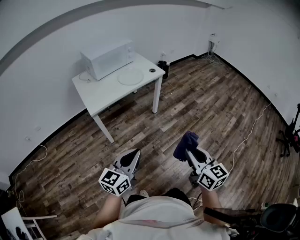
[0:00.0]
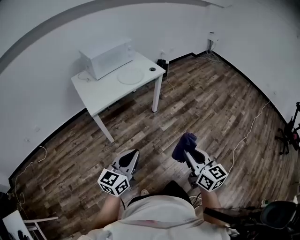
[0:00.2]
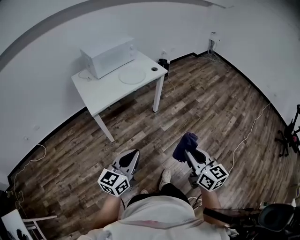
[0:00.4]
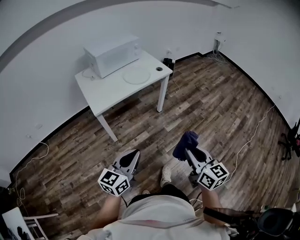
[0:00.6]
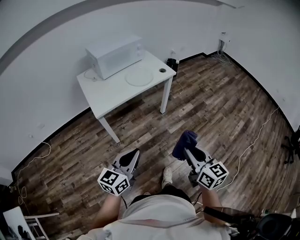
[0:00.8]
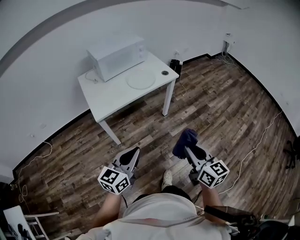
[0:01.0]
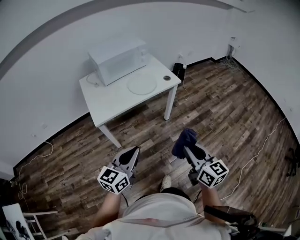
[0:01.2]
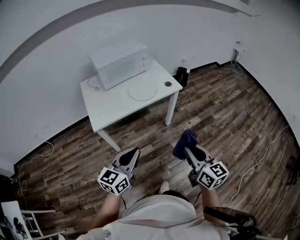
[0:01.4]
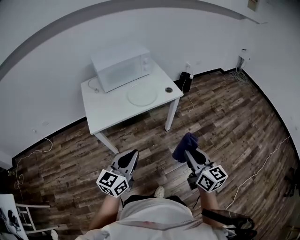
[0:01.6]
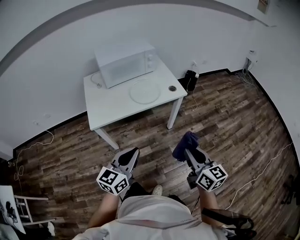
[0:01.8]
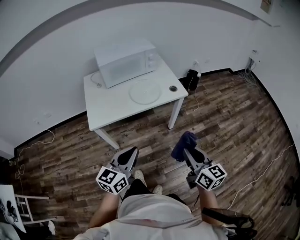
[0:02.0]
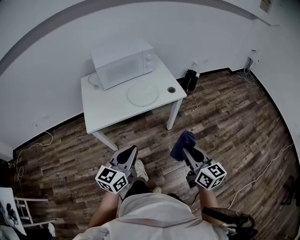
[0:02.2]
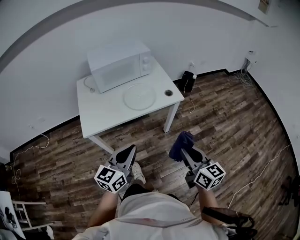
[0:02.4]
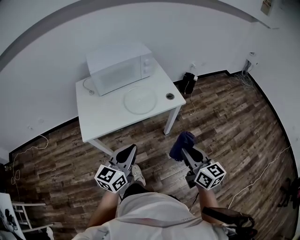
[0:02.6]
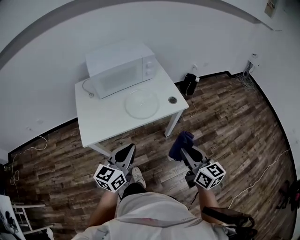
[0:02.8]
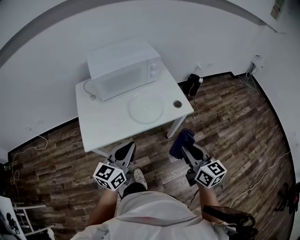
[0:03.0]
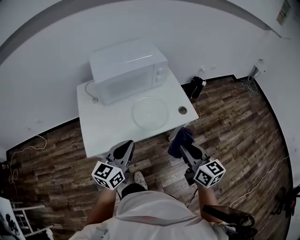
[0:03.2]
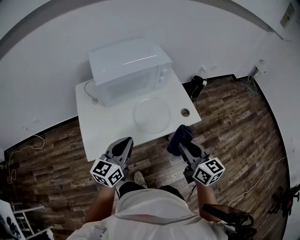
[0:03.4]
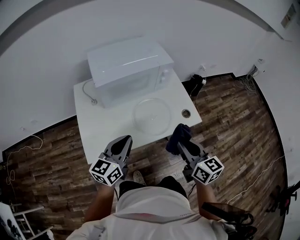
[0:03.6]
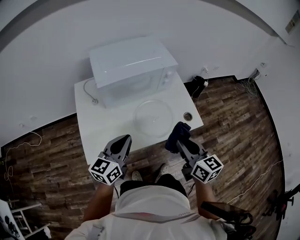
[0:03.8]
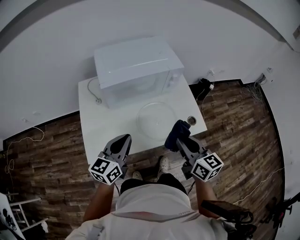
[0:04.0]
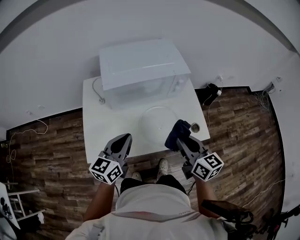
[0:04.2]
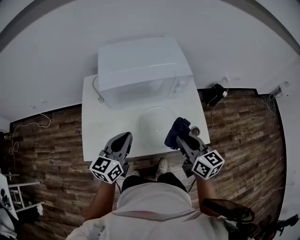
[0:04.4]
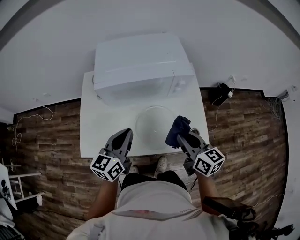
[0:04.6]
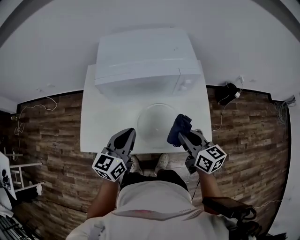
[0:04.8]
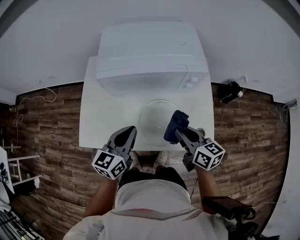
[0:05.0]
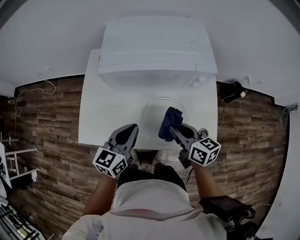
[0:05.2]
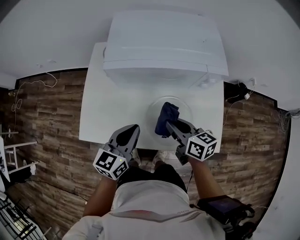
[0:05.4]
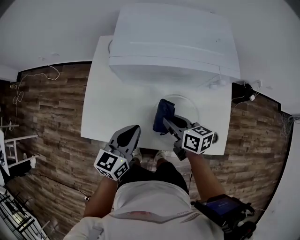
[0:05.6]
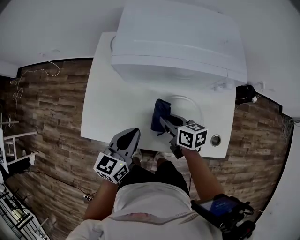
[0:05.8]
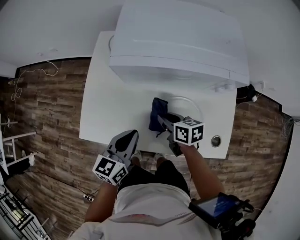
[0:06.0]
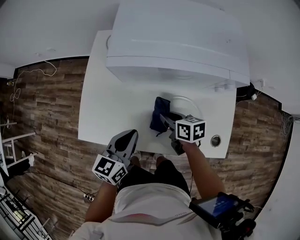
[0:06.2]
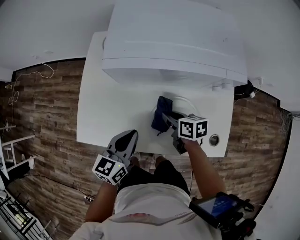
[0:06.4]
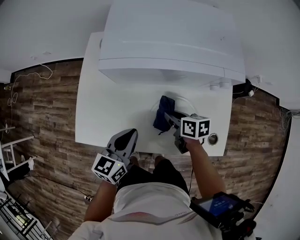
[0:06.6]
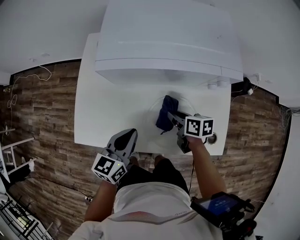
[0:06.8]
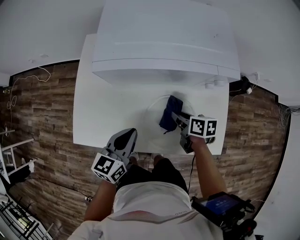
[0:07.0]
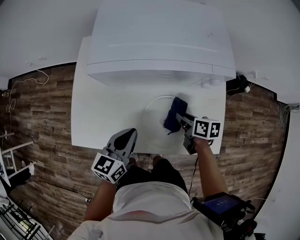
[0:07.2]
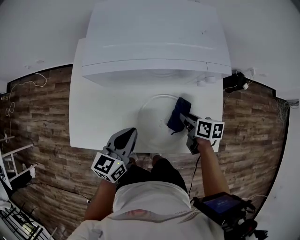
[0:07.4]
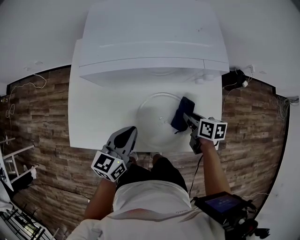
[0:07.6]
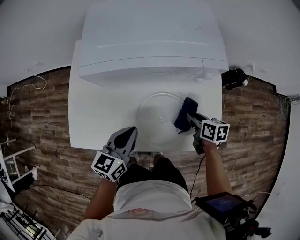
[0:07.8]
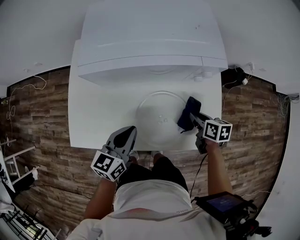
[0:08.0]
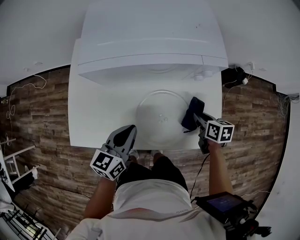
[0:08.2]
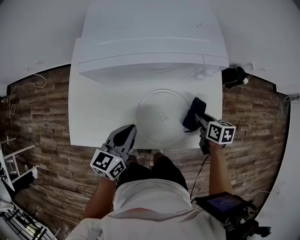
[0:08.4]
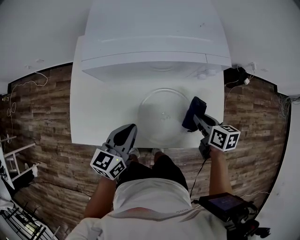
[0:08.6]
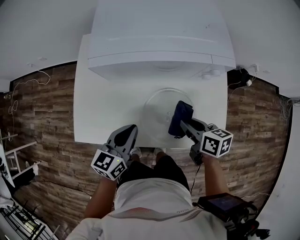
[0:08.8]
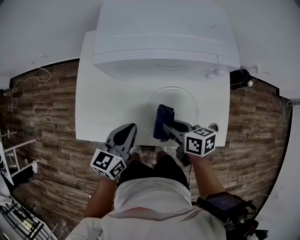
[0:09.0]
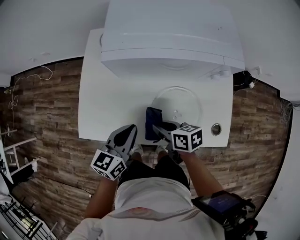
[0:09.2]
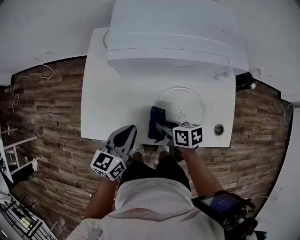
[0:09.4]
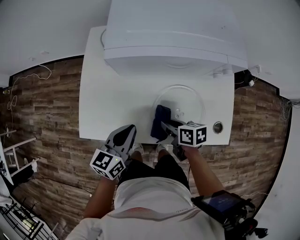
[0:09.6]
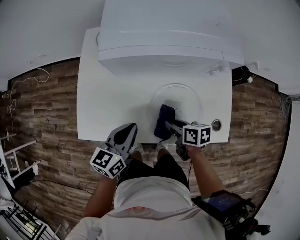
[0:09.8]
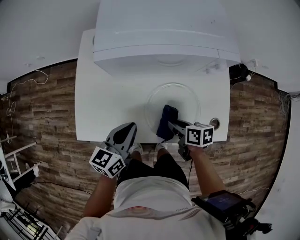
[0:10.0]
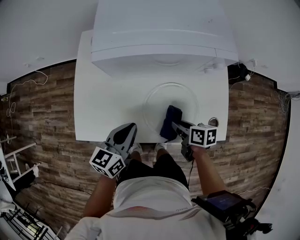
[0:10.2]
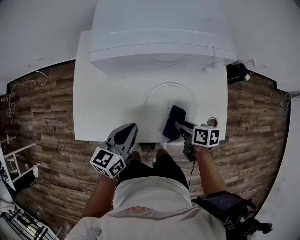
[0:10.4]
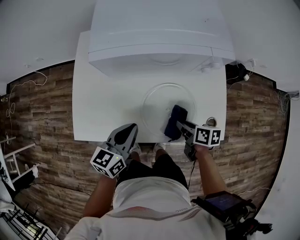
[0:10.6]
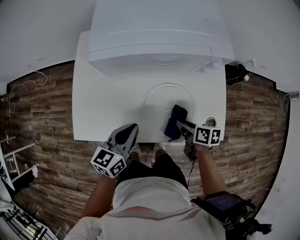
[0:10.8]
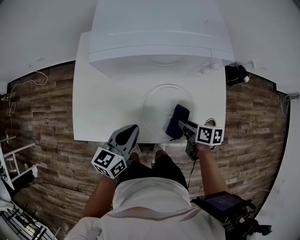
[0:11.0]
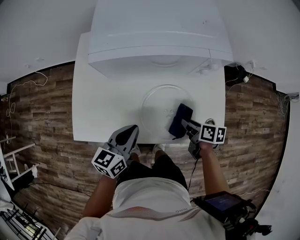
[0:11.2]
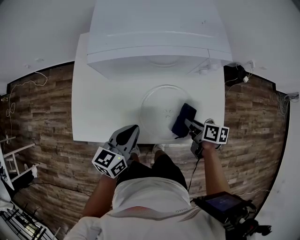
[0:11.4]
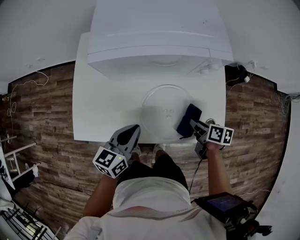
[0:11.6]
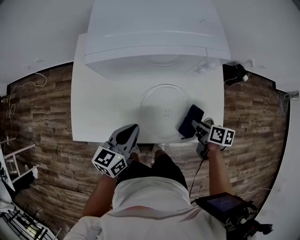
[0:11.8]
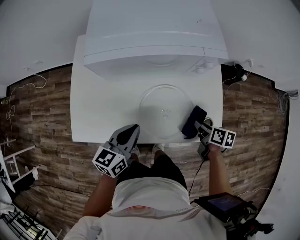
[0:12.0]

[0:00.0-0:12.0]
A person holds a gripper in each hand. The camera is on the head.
0.0 to 1.6 s: Both grippers travel together forward, approximately 25 cm.
1.6 to 3.0 s: The grippers both shift forward by about 25 cm.
3.0 to 4.4 s: The grippers both shift forward by about 25 cm.
4.4 to 6.0 s: The right gripper travels downward, forward and to the left by some 30 cm, and swivels roughly 40 degrees. Meanwhile the left gripper moves downward, roughly 10 cm.
6.0 to 7.6 s: The left gripper heads to the right, covering roughly 5 cm; the right gripper moves to the right, approximately 20 cm, and rotates about 20 degrees.
7.6 to 9.0 s: The right gripper moves to the left and upward, some 15 cm.
9.0 to 10.4 s: The right gripper heads downward and to the right, covering about 10 cm.
10.4 to 12.0 s: The right gripper heads to the right, covering about 10 cm.

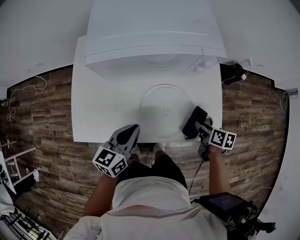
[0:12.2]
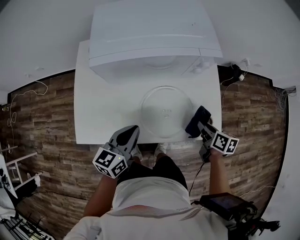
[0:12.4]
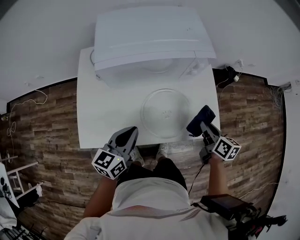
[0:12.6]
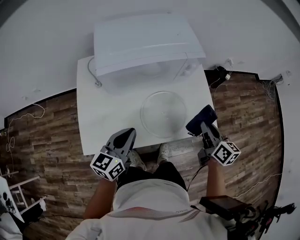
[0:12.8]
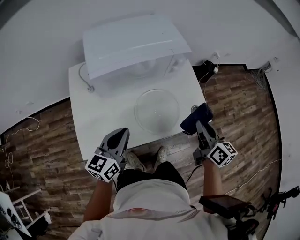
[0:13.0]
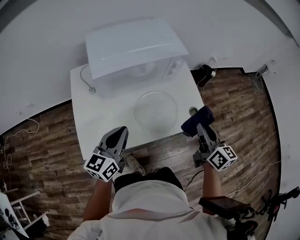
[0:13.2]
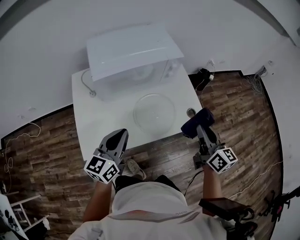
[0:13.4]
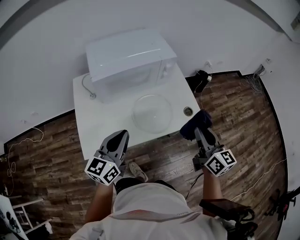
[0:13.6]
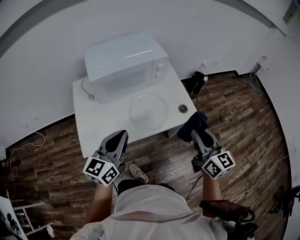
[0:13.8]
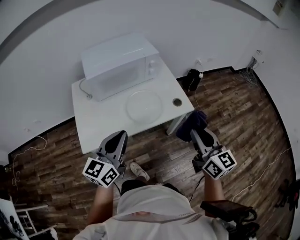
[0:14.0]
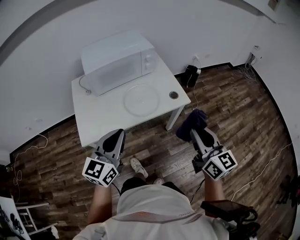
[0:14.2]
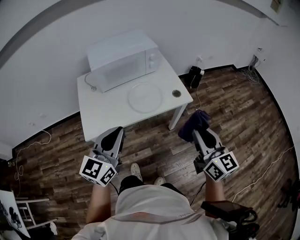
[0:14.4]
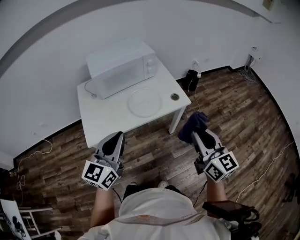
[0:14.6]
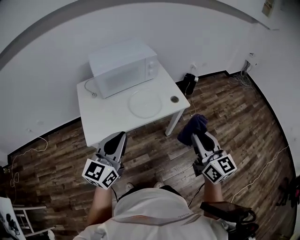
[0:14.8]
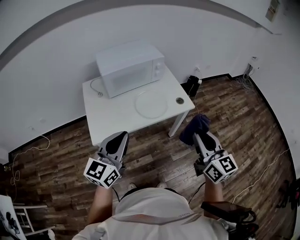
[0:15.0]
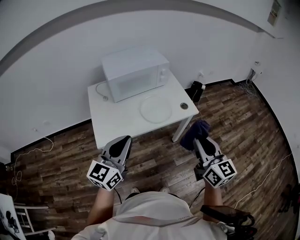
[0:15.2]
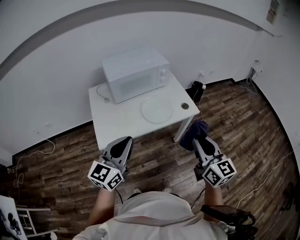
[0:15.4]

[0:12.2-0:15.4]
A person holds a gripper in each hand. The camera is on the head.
12.2 to 13.8 s: The left gripper travels upward and backward by about 20 cm, and changes its angle by about 30 degrees. Meanwhile the right gripper heads upward and backward, covering some 35 cm, and tips its fingers upward by some 40 degrees.
13.8 to 15.4 s: The left gripper heads backward and upward, covering roughly 20 cm. Meanwhile the right gripper is displaced backward by roughly 20 cm.

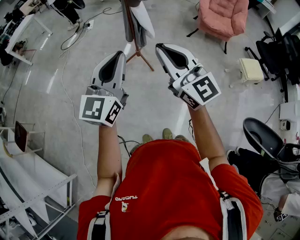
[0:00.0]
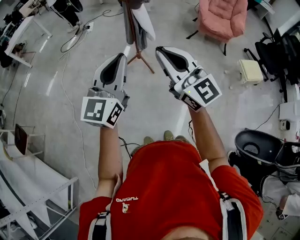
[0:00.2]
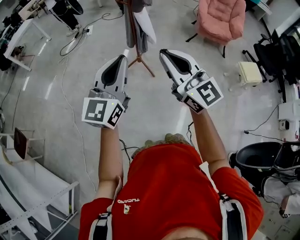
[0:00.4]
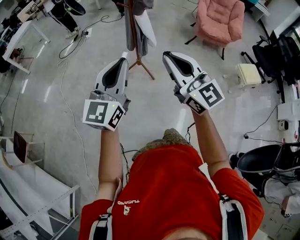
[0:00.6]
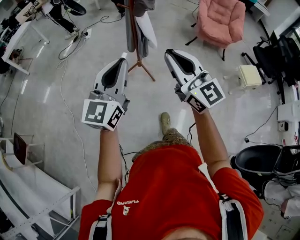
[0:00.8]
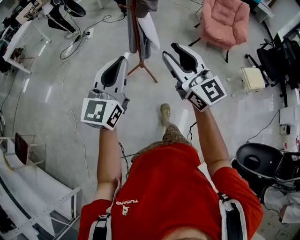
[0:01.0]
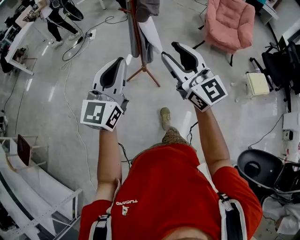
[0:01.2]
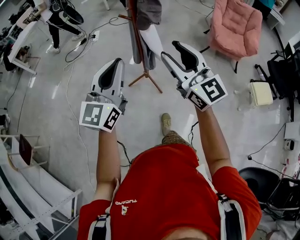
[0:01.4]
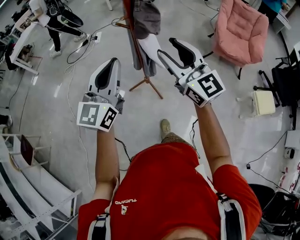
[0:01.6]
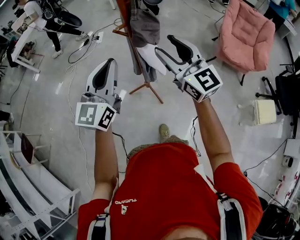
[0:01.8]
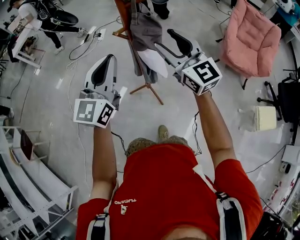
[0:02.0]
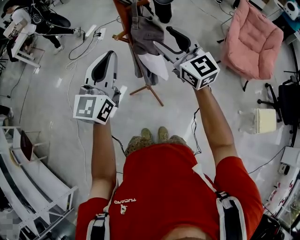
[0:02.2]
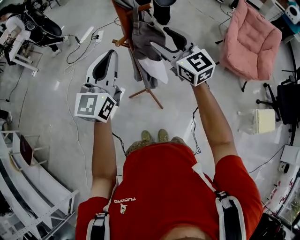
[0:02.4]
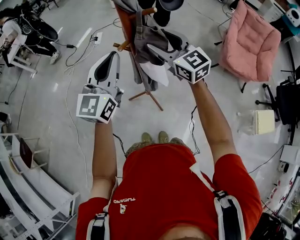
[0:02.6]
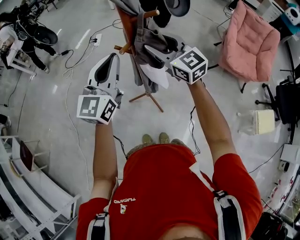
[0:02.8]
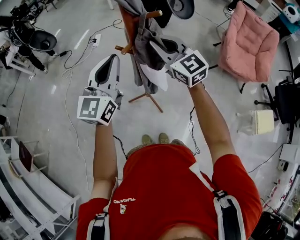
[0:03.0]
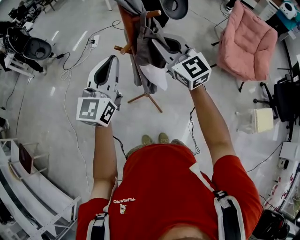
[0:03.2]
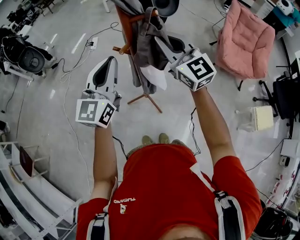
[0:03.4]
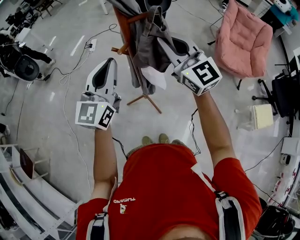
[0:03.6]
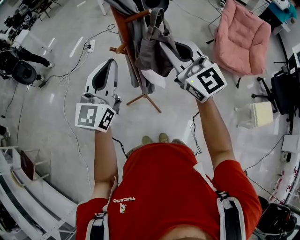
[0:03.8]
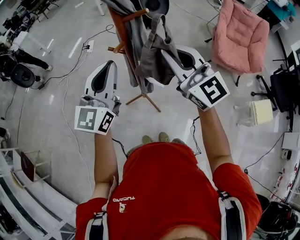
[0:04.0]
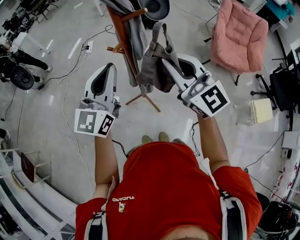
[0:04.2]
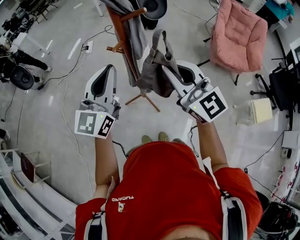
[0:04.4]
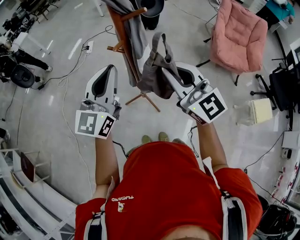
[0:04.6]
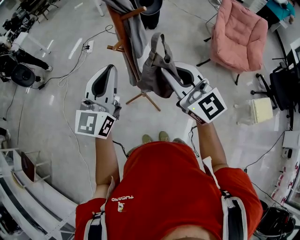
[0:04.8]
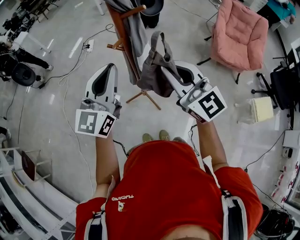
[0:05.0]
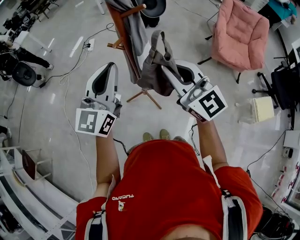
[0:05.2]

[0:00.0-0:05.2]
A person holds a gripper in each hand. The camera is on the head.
0.0 to 1.8 s: Both grippers travel together forward, approximately 40 cm. The right gripper opens up.
1.8 to 3.4 s: Both grippers move forward, approximately 15 cm. The right gripper closes up.
3.4 to 5.2 s: The left gripper is displaced backward by some 5 cm. Meanwhile the right gripper goes some 15 cm backward.

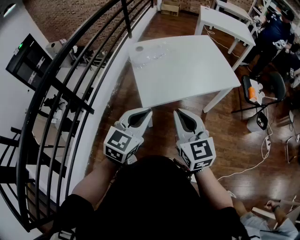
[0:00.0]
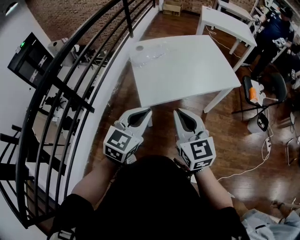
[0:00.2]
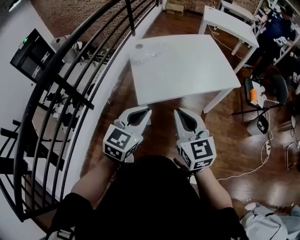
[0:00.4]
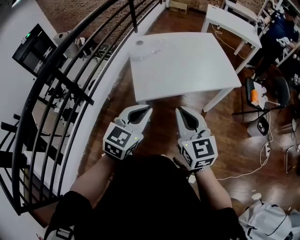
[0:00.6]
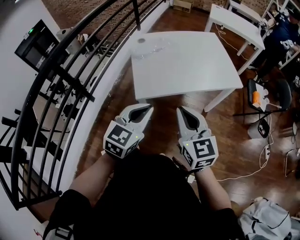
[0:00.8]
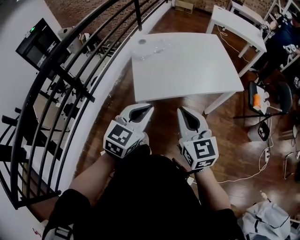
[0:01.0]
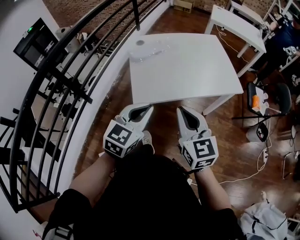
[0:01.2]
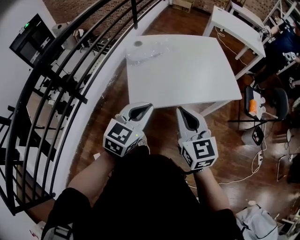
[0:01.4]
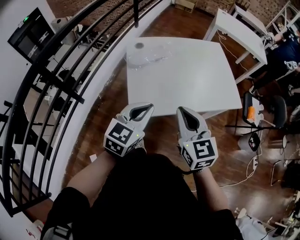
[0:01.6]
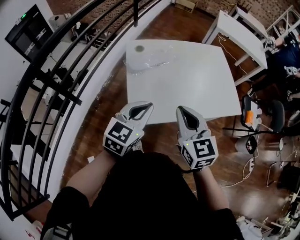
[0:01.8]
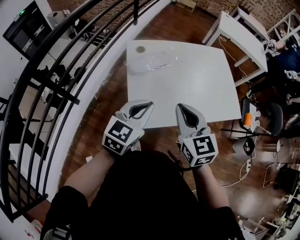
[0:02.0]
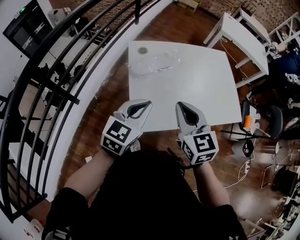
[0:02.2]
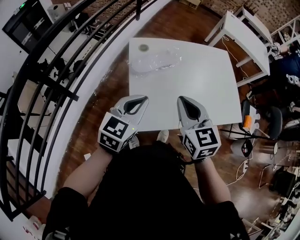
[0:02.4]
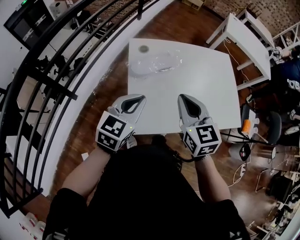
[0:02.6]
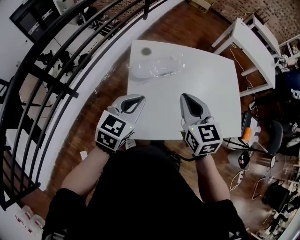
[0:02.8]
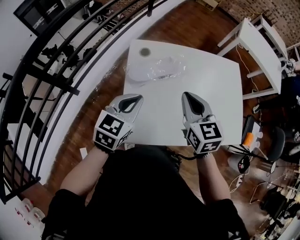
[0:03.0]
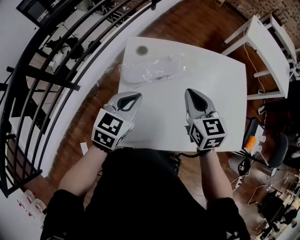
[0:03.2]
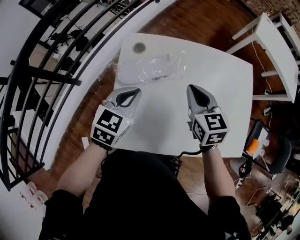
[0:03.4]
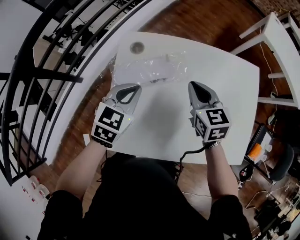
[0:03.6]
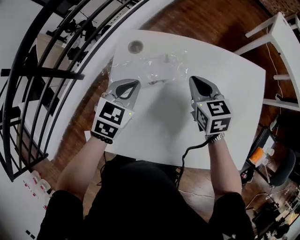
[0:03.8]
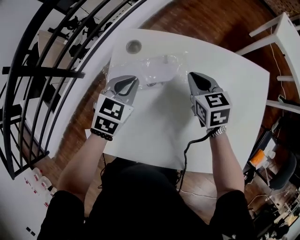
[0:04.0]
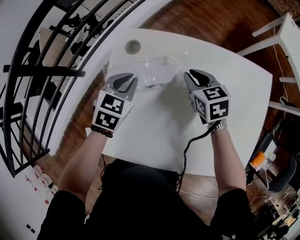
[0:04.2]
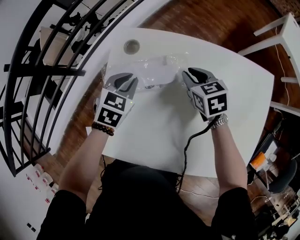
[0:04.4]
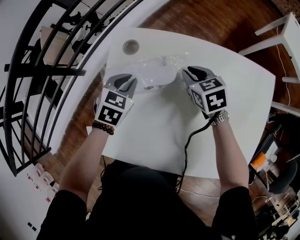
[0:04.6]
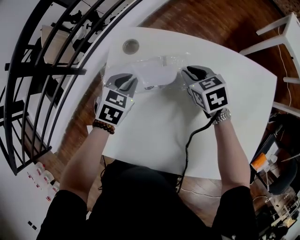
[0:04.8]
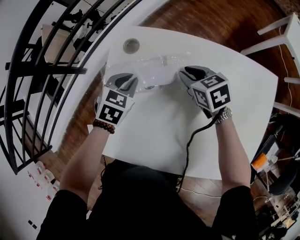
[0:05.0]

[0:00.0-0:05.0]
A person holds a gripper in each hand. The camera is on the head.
0.0 to 1.6 s: The two grippers go roughly 15 cm forward.
1.6 to 3.4 s: Both grippers move forward, roughly 35 cm. The left gripper swivels approximately 20 degrees.
3.4 to 5.0 s: The grippers both shift downward by about 15 cm. The left gripper rotates roughly 20 degrees, while the right gripper changes its angle by approximately 30 degrees.
